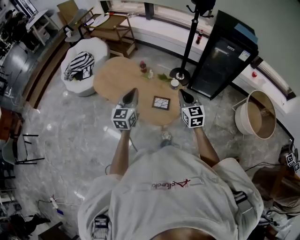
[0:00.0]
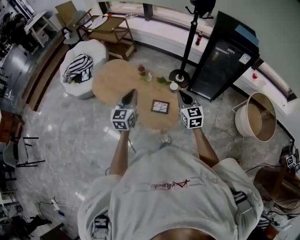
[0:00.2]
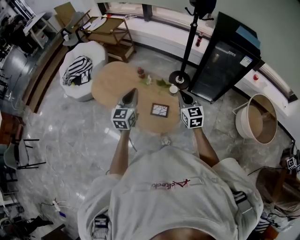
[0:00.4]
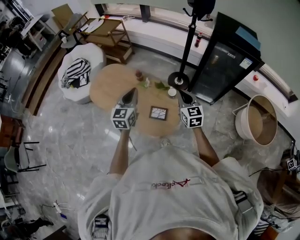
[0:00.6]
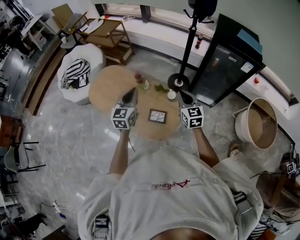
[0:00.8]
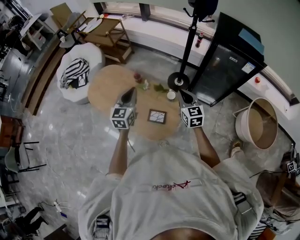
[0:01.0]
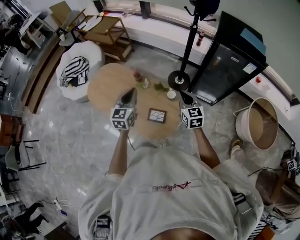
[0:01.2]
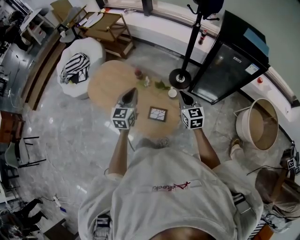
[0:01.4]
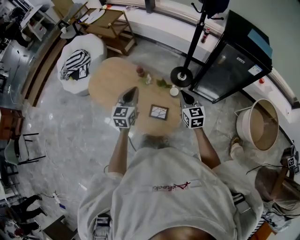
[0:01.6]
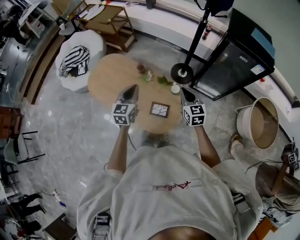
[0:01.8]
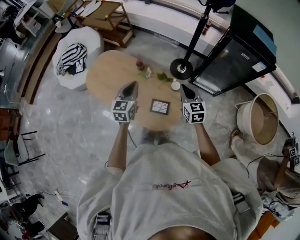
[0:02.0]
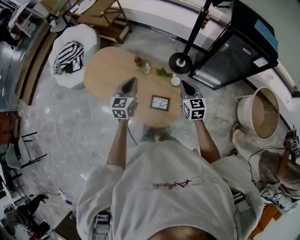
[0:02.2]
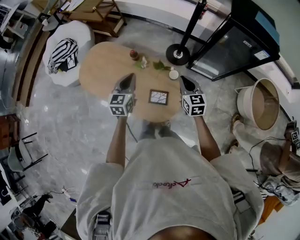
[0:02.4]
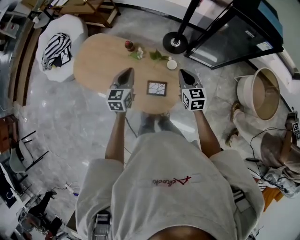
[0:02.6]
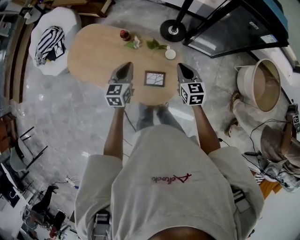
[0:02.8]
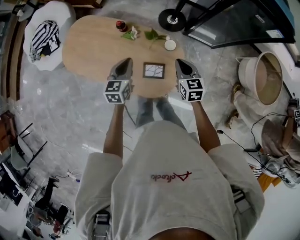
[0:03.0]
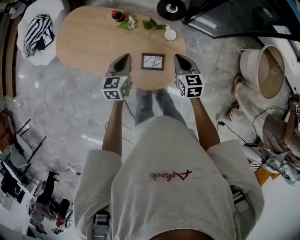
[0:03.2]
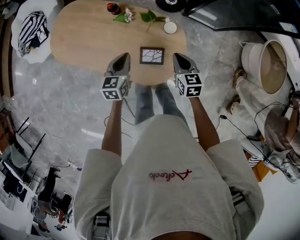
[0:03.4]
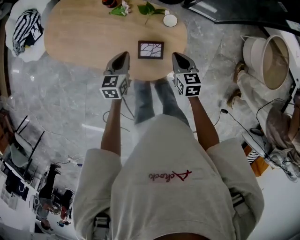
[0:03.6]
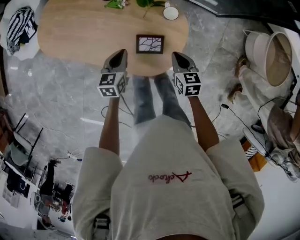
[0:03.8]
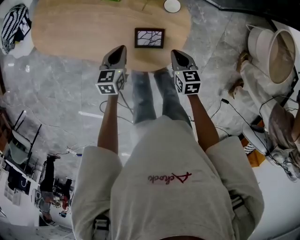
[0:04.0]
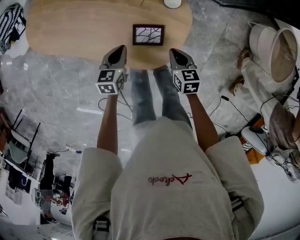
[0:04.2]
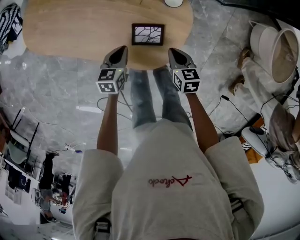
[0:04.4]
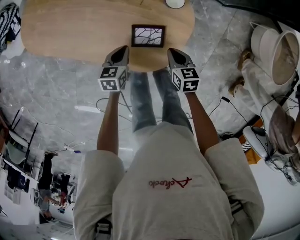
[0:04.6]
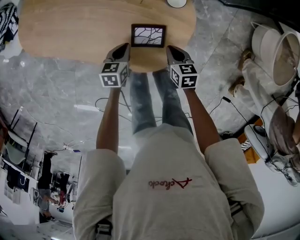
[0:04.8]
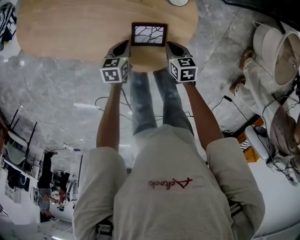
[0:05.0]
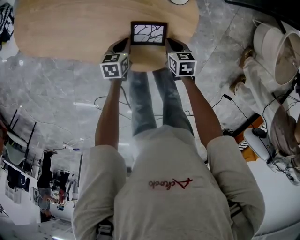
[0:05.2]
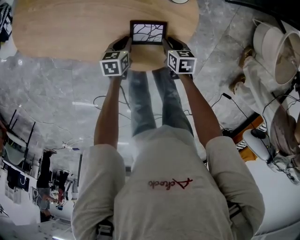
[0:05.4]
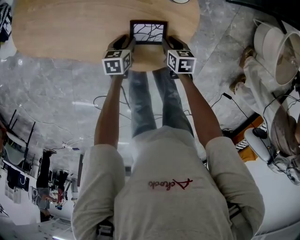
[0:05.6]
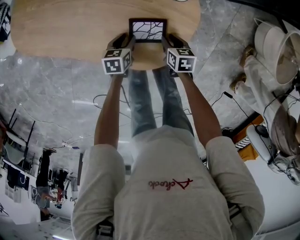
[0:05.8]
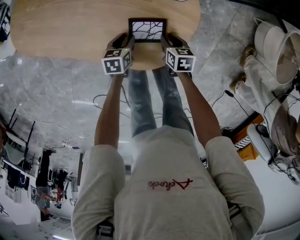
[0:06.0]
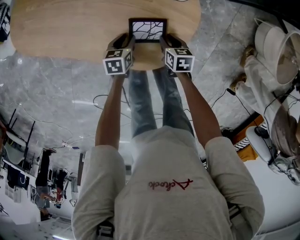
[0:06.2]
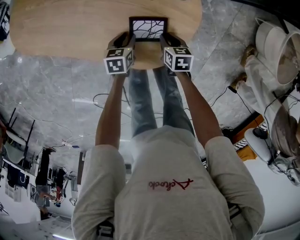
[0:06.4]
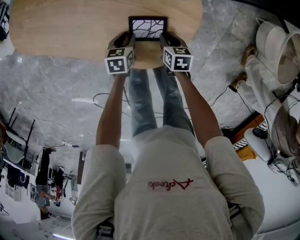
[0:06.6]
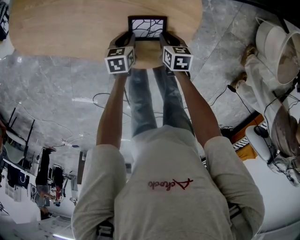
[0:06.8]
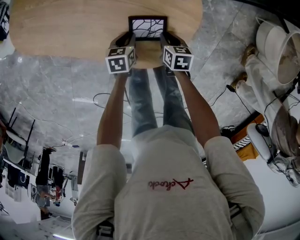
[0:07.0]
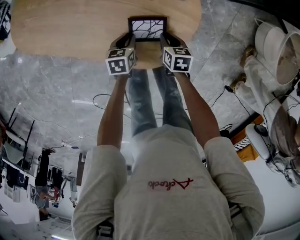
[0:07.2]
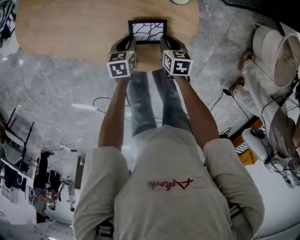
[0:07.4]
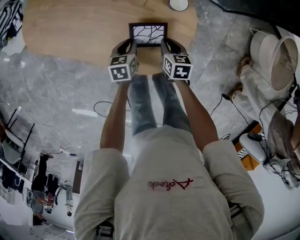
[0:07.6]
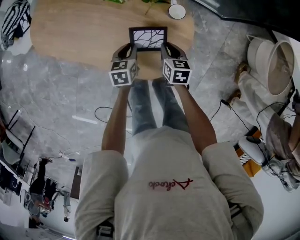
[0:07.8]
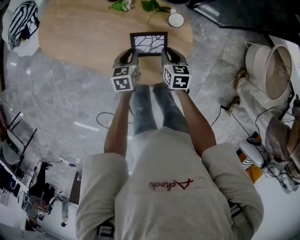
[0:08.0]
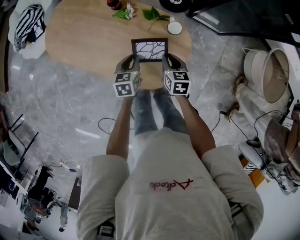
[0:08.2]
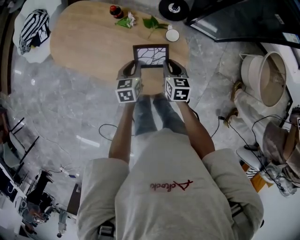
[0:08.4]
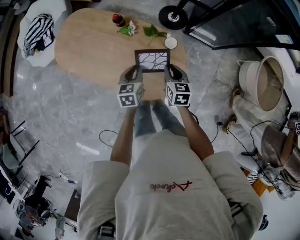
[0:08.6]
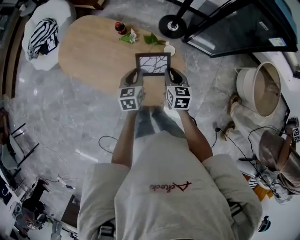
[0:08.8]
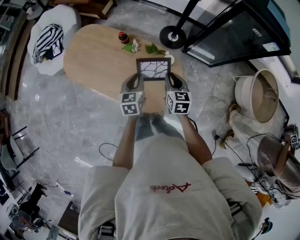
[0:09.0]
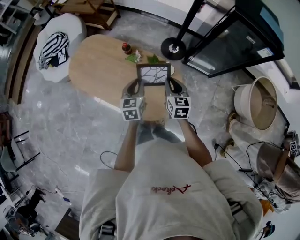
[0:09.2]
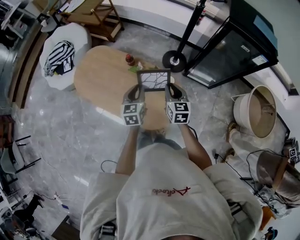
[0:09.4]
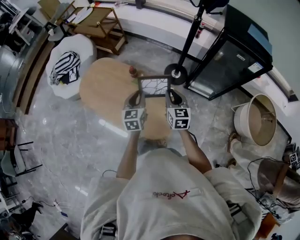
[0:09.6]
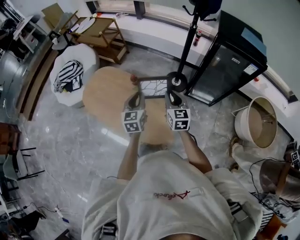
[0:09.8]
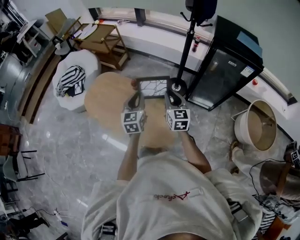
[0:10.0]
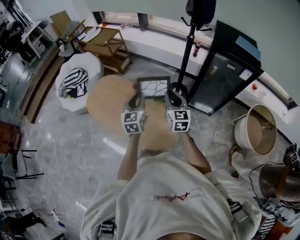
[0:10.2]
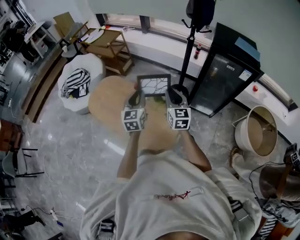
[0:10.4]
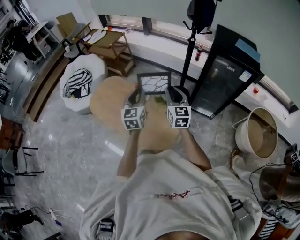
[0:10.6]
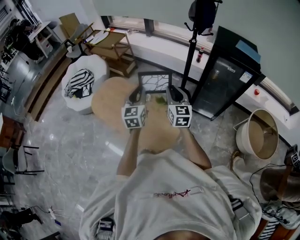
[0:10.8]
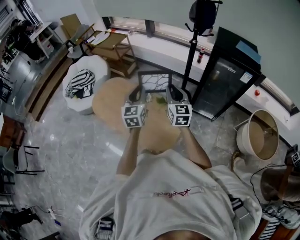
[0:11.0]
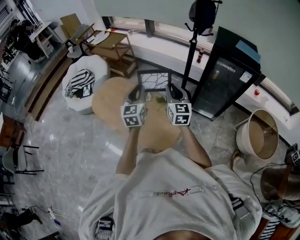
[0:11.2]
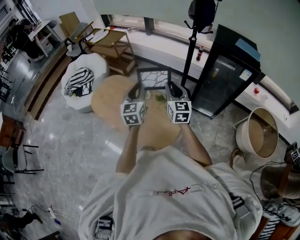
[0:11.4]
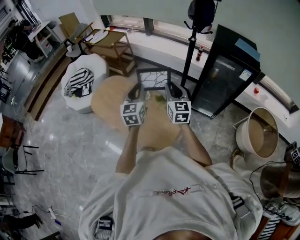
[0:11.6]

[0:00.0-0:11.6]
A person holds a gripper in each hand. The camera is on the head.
0:00.0 to 0:01.4: Both grippers move forward, approximately 20 cm.
0:01.4 to 0:02.8: Both grippers move downward and forward, roughly 15 cm.
0:02.8 to 0:04.4: The two grippers go approximately 30 cm downward. The left gripper turns by approximately 20 degrees. Meanwhile the right gripper swivels some 20 degrees.
0:04.4 to 0:05.8: The grippers both shift downward by some 15 cm. The left gripper opens up. Meanwhile the right gripper opens.
0:05.8 to 0:07.2: There are only small adjustments of the grippers.
0:07.2 to 0:08.8: The grippers both shift upward by some 30 cm. The right gripper turns by roughly 30 degrees. The left gripper swivels roughly 30 degrees.
0:08.8 to 0:10.2: Both grippers move upward, some 30 cm. The right gripper changes its angle by some 30 degrees. Meanwhile the left gripper rotates about 30 degrees.
0:10.2 to 0:11.6: Both grippers move upward, some 5 cm.

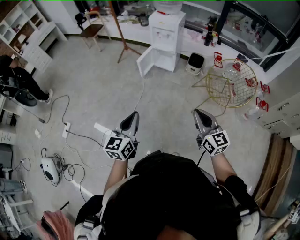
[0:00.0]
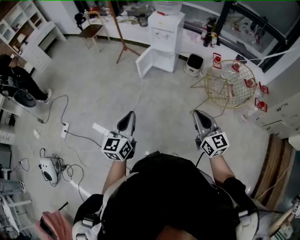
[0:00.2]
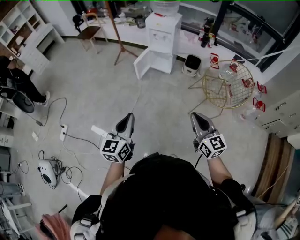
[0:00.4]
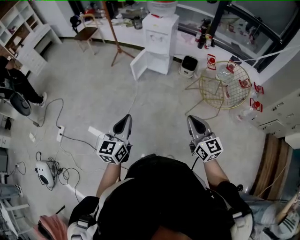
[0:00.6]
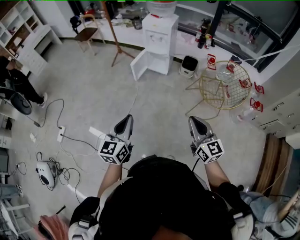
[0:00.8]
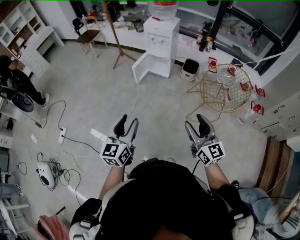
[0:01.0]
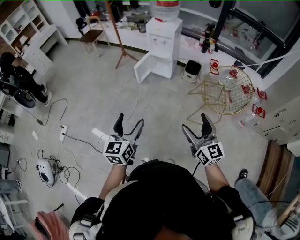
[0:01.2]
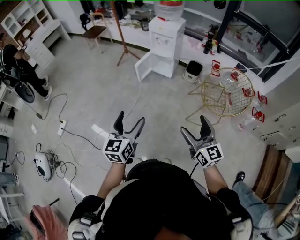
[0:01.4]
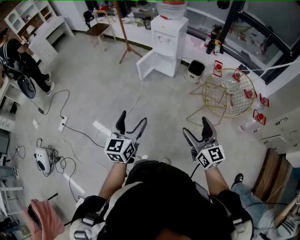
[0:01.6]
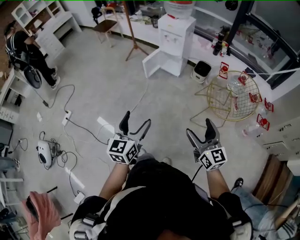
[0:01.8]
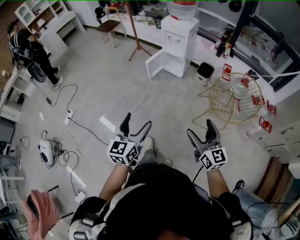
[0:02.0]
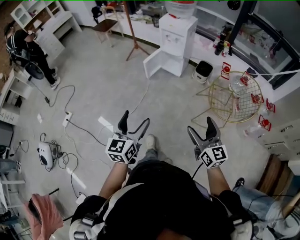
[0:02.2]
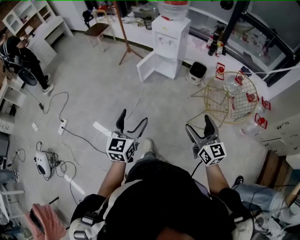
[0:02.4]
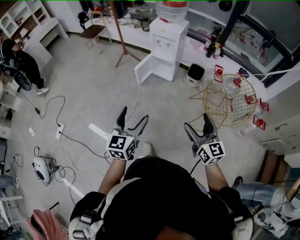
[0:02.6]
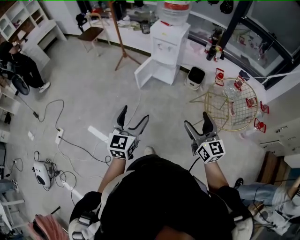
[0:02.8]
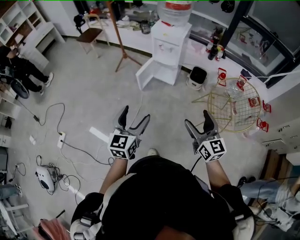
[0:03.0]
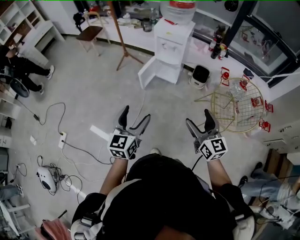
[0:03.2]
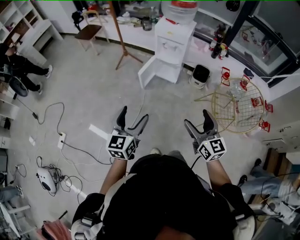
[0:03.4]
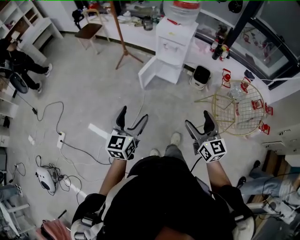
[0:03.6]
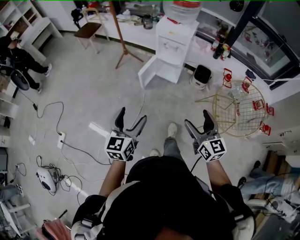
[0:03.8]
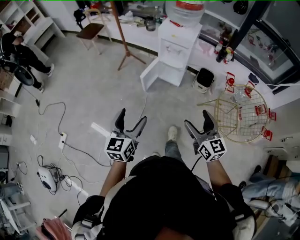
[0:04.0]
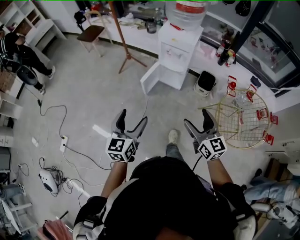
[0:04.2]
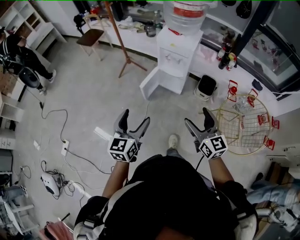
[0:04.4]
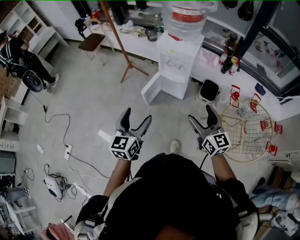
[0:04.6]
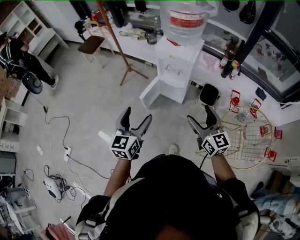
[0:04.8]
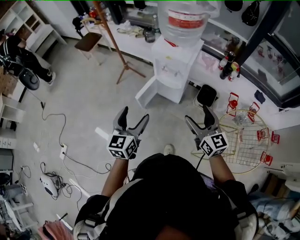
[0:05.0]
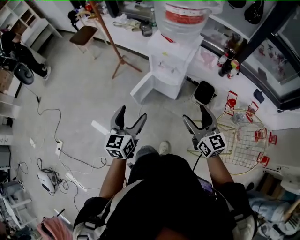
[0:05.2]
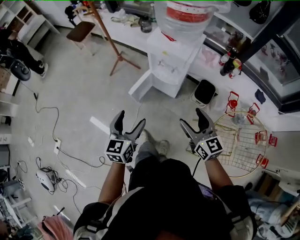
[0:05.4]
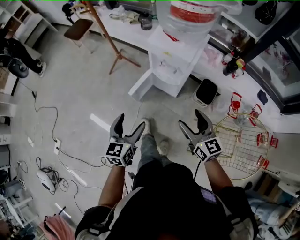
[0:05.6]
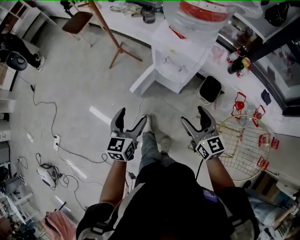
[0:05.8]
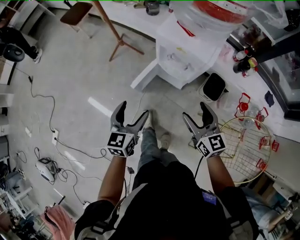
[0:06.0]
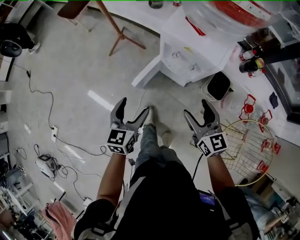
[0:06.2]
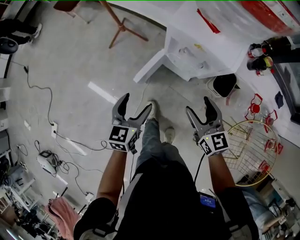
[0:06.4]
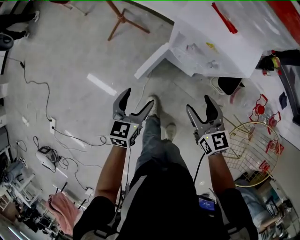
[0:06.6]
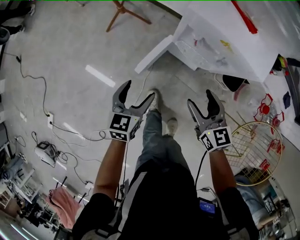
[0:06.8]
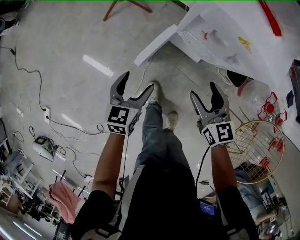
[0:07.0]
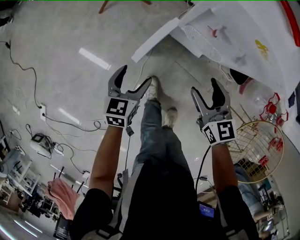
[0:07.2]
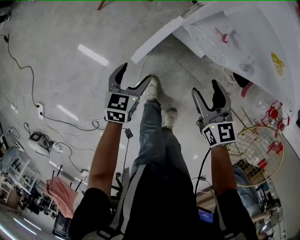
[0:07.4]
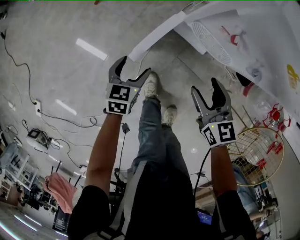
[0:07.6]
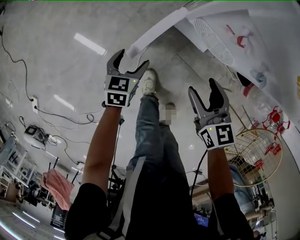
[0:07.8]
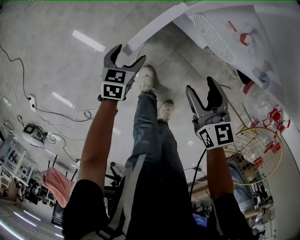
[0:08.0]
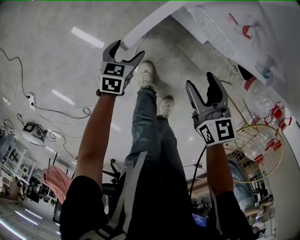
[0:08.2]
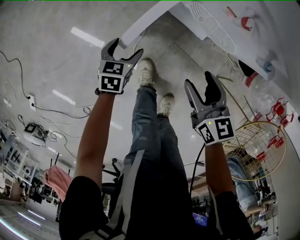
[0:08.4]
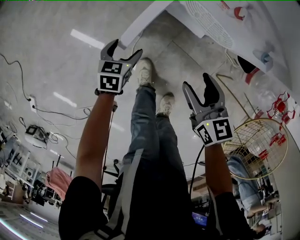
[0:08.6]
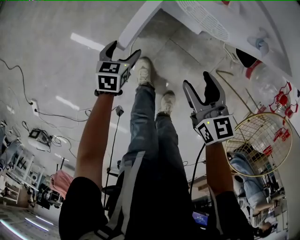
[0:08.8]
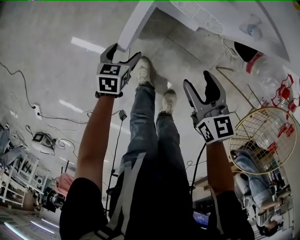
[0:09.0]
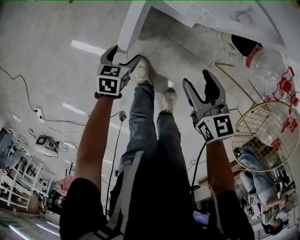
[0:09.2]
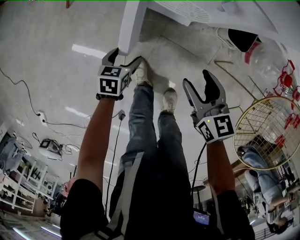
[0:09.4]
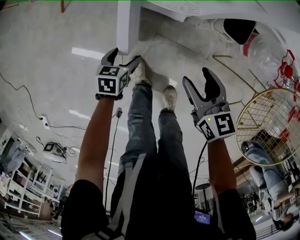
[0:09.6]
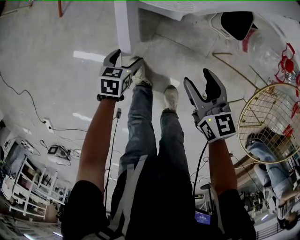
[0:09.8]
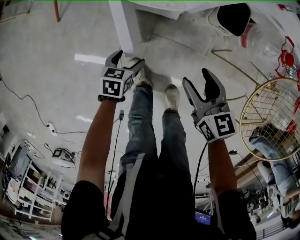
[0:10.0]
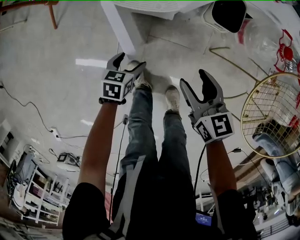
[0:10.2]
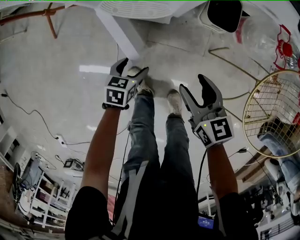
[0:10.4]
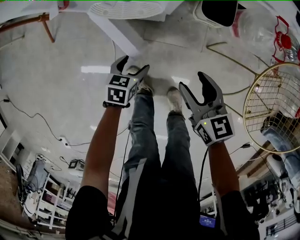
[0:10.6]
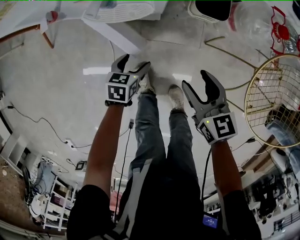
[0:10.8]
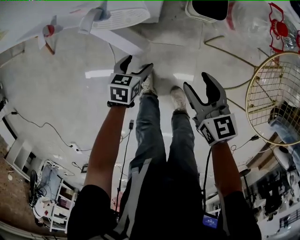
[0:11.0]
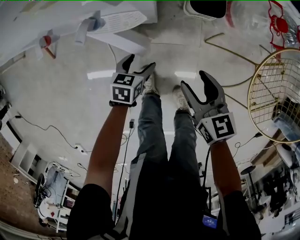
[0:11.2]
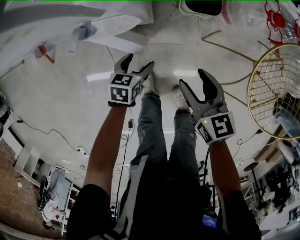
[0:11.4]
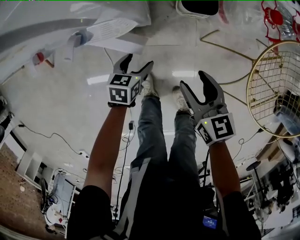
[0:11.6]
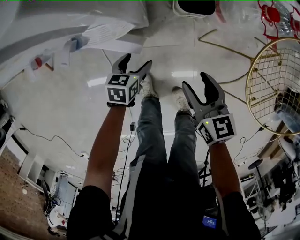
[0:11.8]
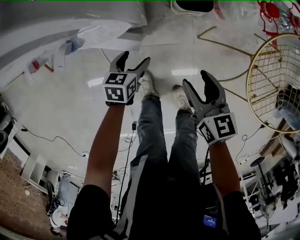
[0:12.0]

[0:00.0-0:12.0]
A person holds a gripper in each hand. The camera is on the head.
0:00.0 to 0:01.6: Both grippers travel together to the right, about 5 cm. The right gripper opens up. Meanwhile the left gripper opens its fingers.
0:01.6 to 0:03.0: The two grippers go roughly 20 cm forward.
0:03.0 to 0:04.4: The grippers both shift forward by about 20 cm.
0:04.4 to 0:06.0: Both grippers travel together forward and downward, about 30 cm.
0:06.0 to 0:07.6: Both grippers travel together downward, approximately 35 cm. The left gripper swivels some 20 degrees.
0:07.6 to 0:09.0: The right gripper heads backward and to the right, covering approximately 10 cm. The left gripper shifts approximately 10 cm downward.
0:09.0 to 0:10.4: Both grippers travel together to the right, roughly 15 cm. The left gripper turns by roughly 20 degrees.
0:10.4 to 0:12.0: The left gripper shifts approximately 10 cm forward and to the right. Meanwhile the right gripper heads to the right, covering some 5 cm.
